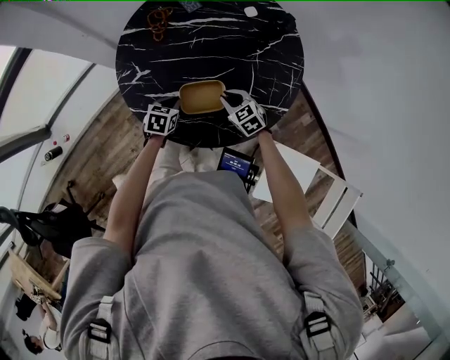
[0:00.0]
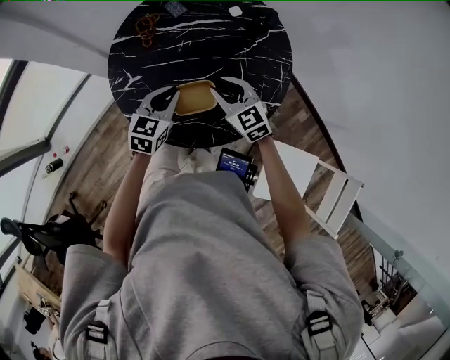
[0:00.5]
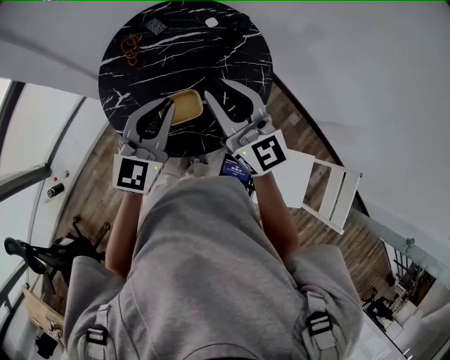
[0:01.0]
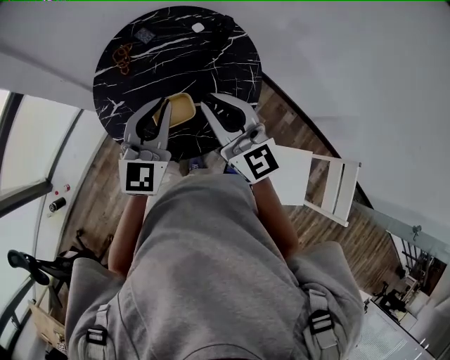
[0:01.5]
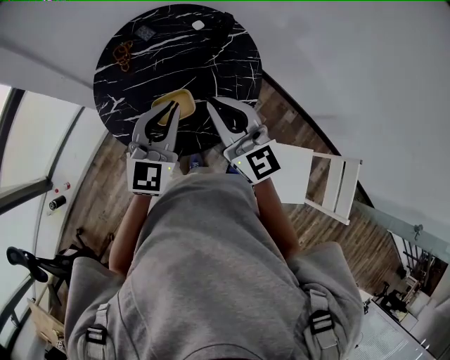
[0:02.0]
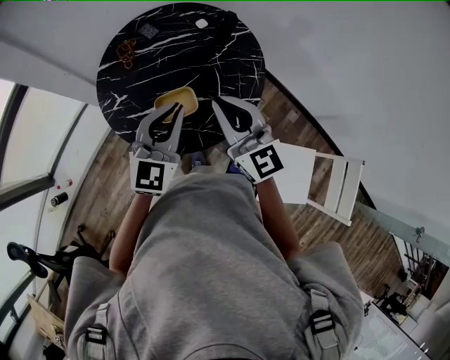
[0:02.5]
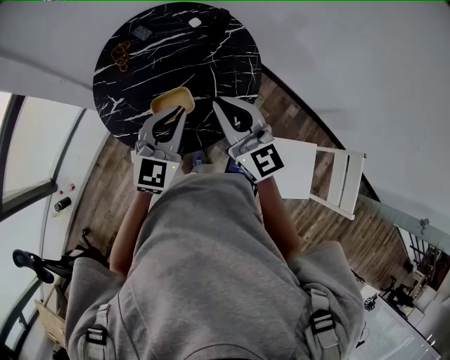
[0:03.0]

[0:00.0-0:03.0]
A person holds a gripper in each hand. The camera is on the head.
0:00.0 to 0:01.5: Both grippers travel together upward, some 40 cm. The left gripper tips its fingers upward by approximately 50 degrees. The right gripper tilts its fingers approximately 50 degrees upward.
0:01.5 to 0:03.0: The left gripper shifts by some 5 cm.

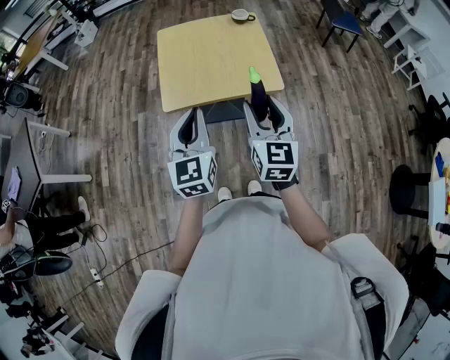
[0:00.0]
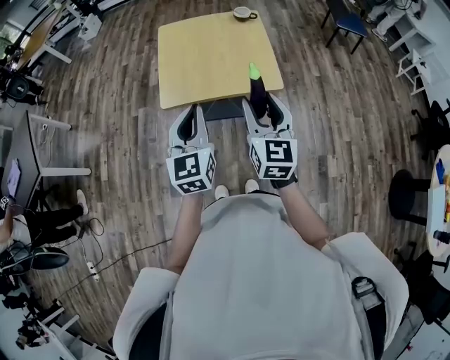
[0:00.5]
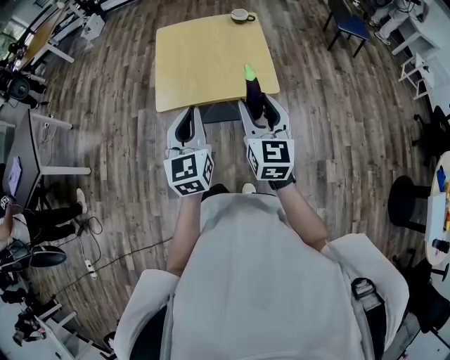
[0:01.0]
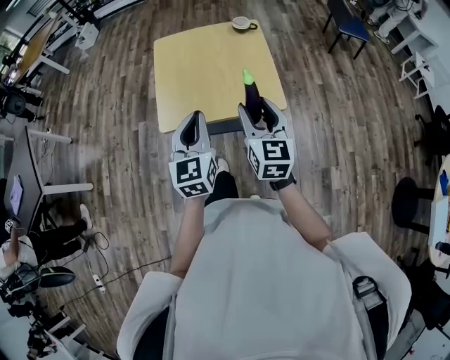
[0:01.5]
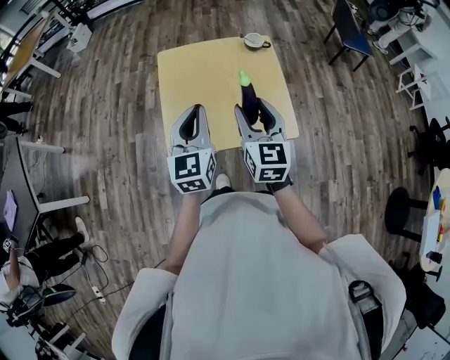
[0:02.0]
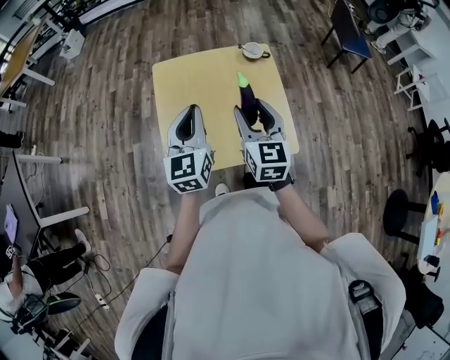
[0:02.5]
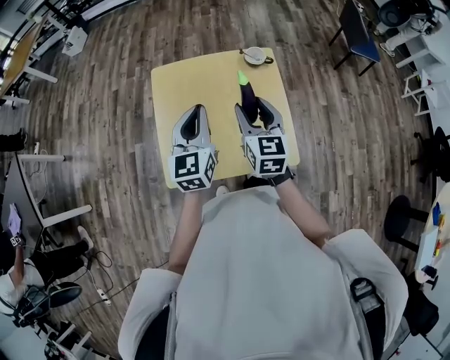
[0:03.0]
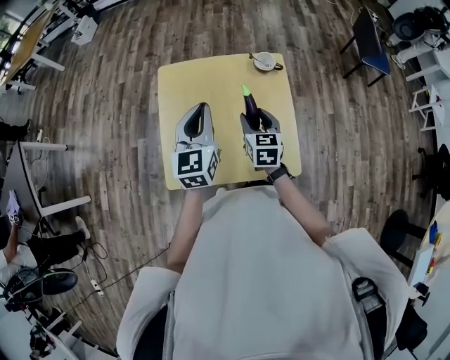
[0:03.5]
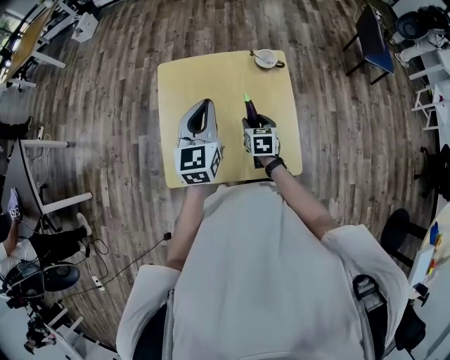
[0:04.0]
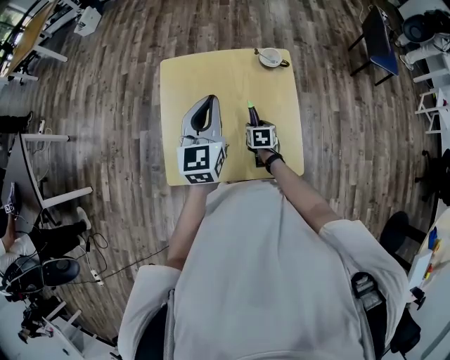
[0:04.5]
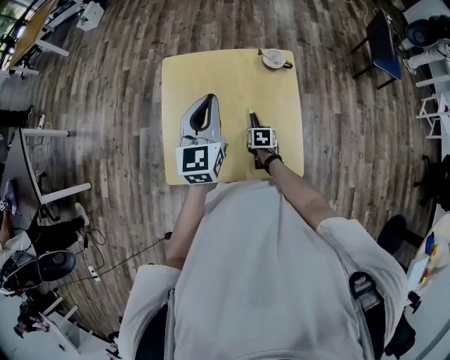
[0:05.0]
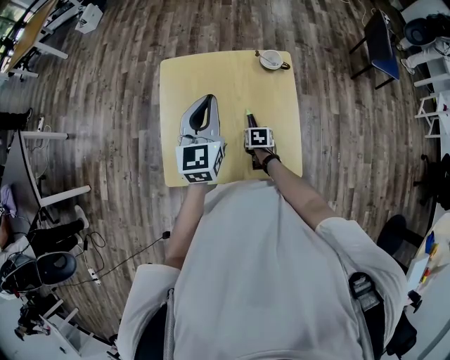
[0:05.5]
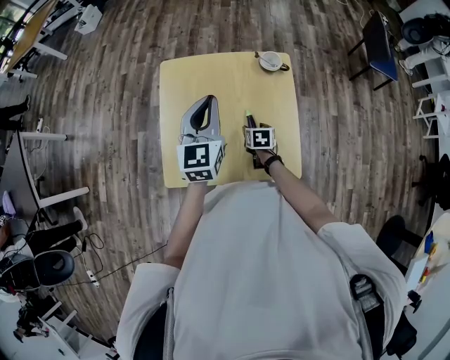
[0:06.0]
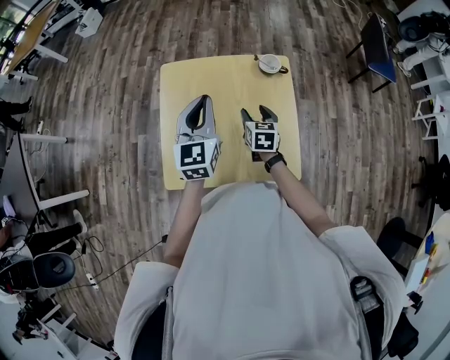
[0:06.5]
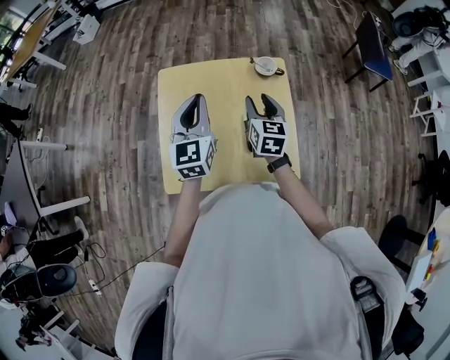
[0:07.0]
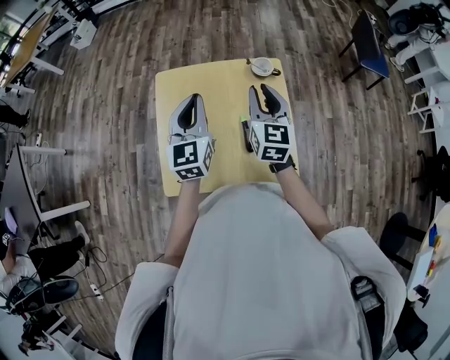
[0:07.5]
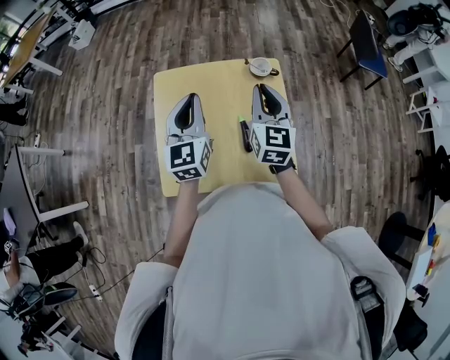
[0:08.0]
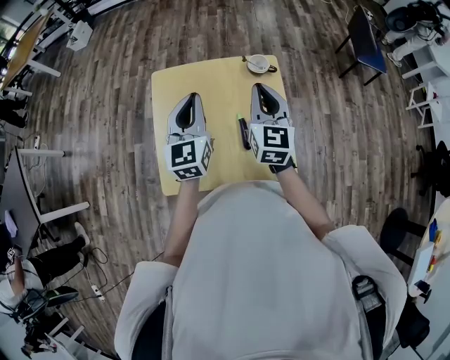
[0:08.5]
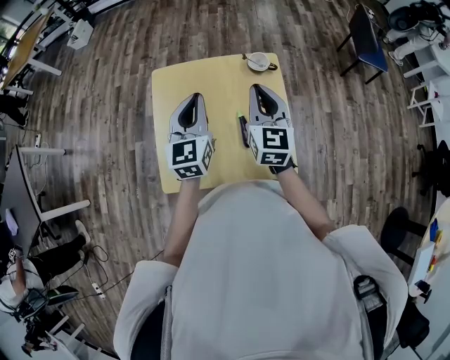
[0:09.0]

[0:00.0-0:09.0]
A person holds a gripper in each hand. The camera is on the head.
0:00.0 to 0:02.0: Both grippers move forward, roughly 25 cm.
0:02.0 to 0:04.5: The right gripper heads downward and forward, covering about 40 cm, and tilts its fingers some 50 degrees downward; the left gripper goes approximately 20 cm forward.
0:04.5 to 0:07.0: The right gripper heads upward, covering roughly 20 cm, and tilts its fingers roughly 30 degrees upward.
0:07.0 to 0:09.0: The right gripper moves upward, approximately 10 cm, and closes its fingers.

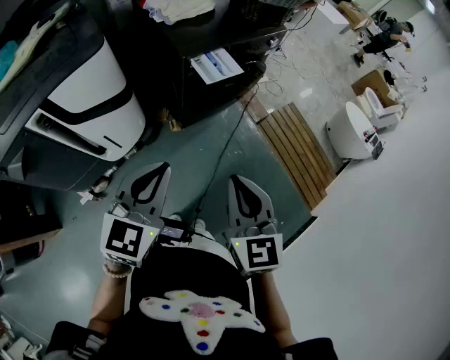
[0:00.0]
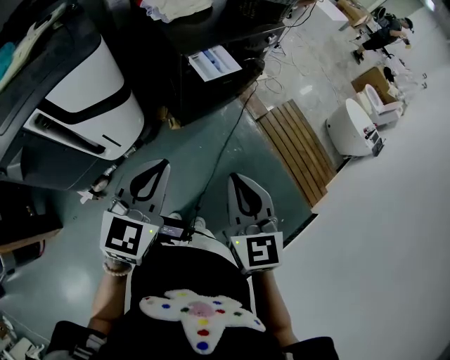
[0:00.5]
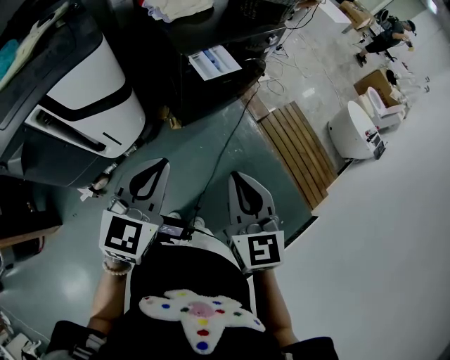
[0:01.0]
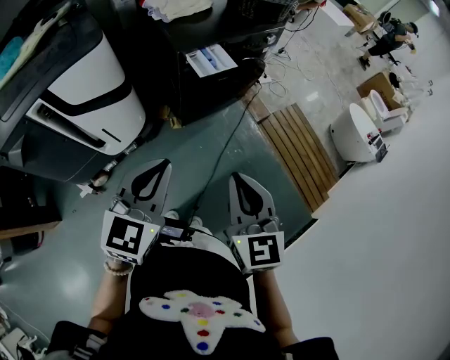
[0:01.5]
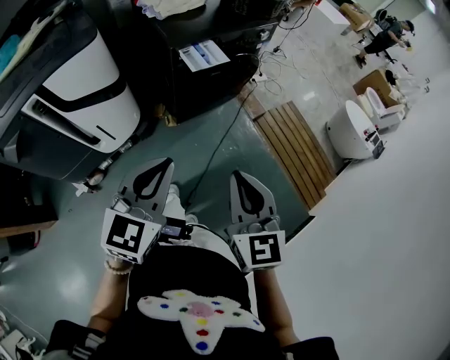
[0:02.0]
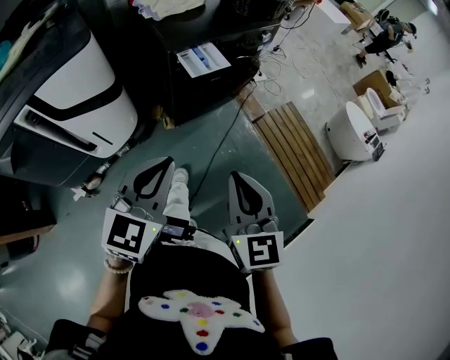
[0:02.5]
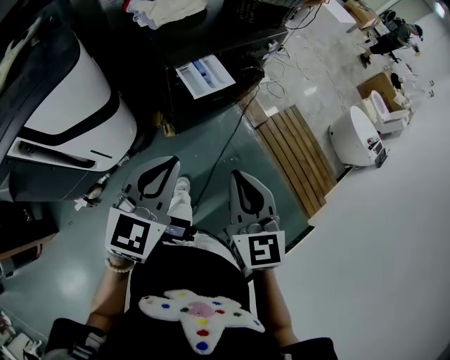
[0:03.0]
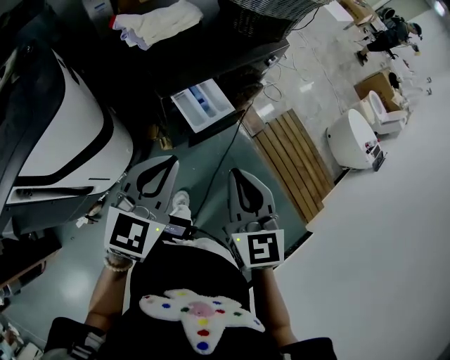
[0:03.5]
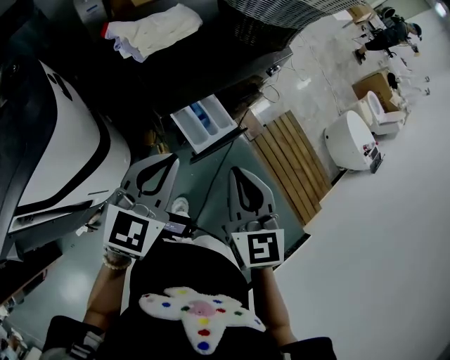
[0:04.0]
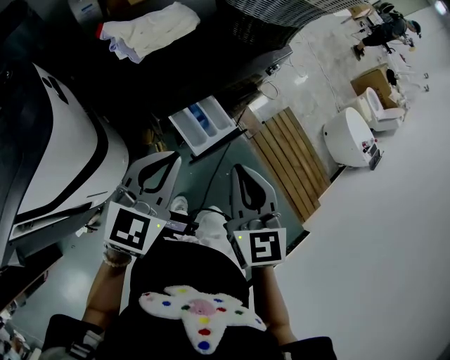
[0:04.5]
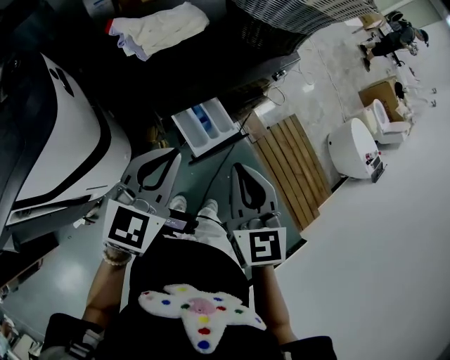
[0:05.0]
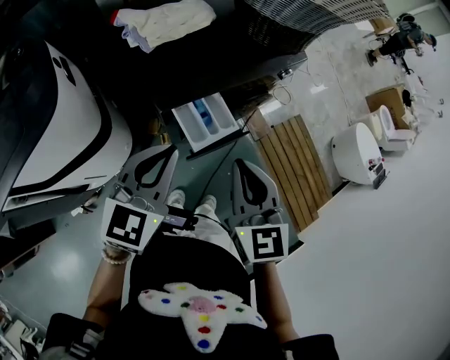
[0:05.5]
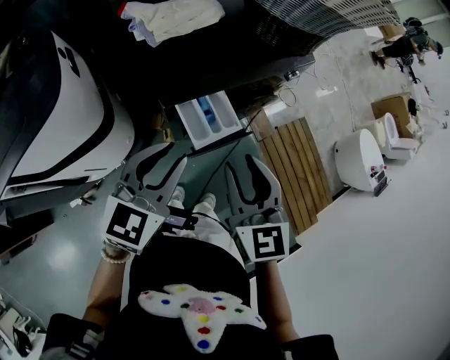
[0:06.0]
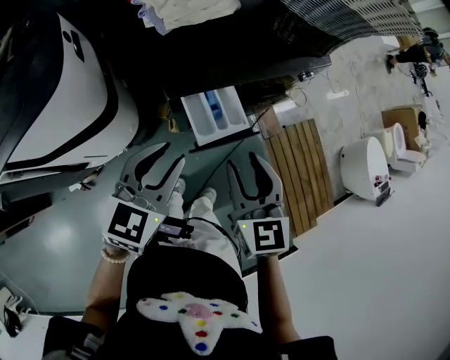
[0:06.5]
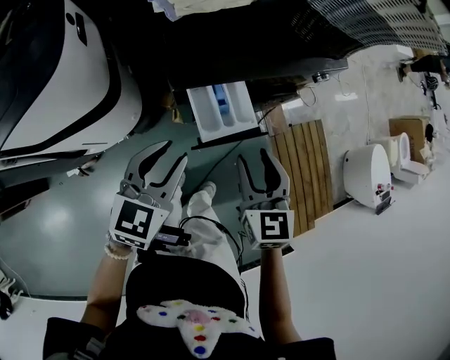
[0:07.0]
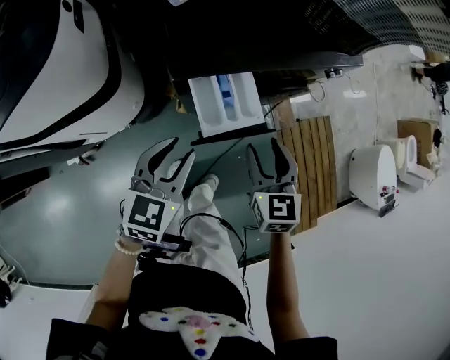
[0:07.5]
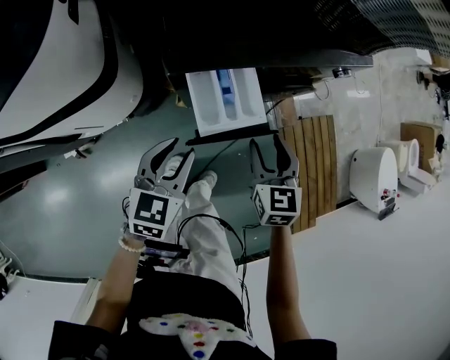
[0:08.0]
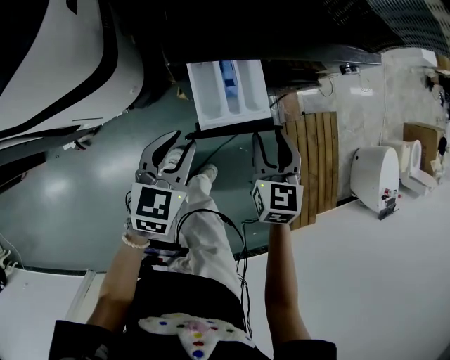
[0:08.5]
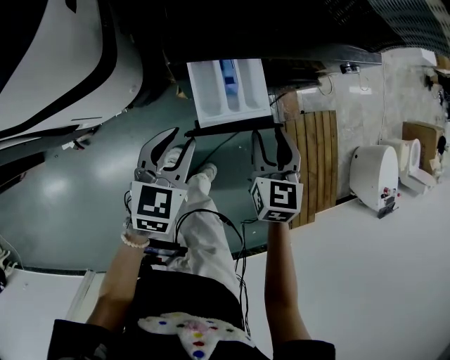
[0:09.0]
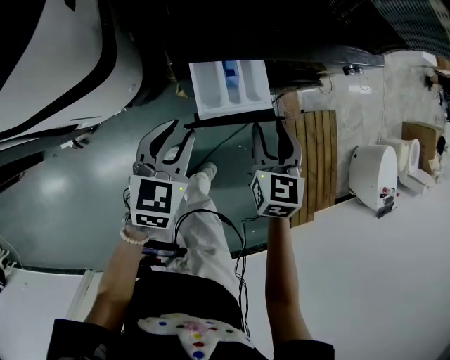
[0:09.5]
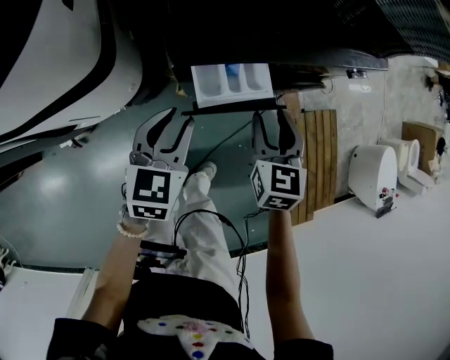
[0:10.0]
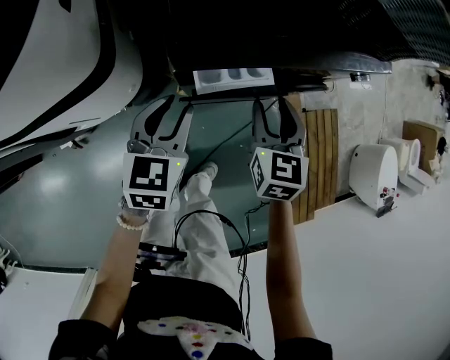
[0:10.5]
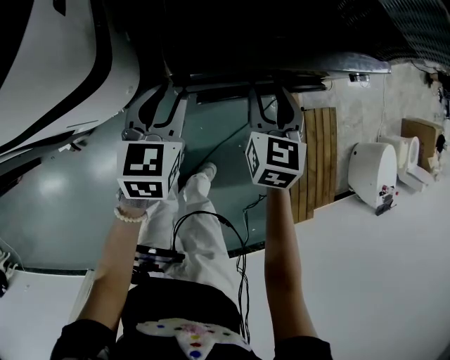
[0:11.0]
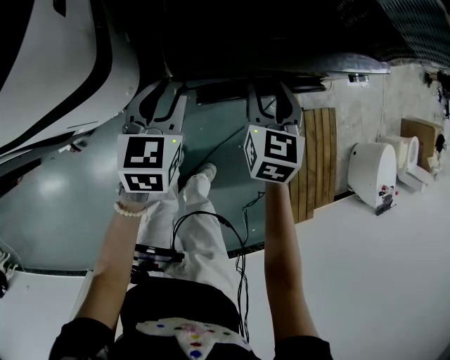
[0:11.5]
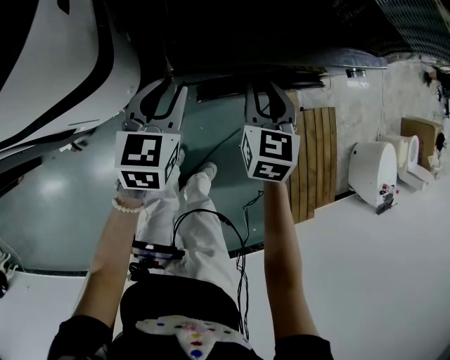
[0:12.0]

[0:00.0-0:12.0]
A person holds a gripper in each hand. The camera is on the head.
0:00.0 to 0:02.0: The two grippers go roughly 10 cm to the right.
0:02.0 to 0:04.0: Both grippers move forward, approximately 35 cm.
0:04.0 to 0:06.0: The left gripper opens its fingers, while the right gripper opens up.
0:06.0 to 0:08.0: Both grippers move downward, approximately 20 cm. The left gripper turns by roughly 30 degrees.
0:08.0 to 0:10.0: Both grippers move forward, some 5 cm.
0:10.0 to 0:12.0: Both grippers move forward, some 5 cm.

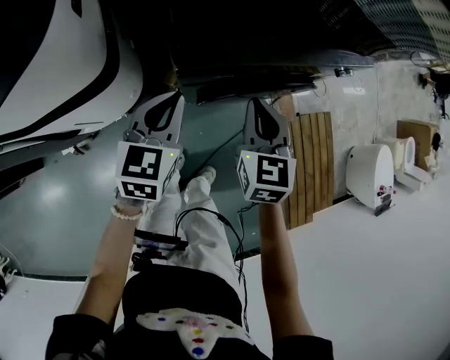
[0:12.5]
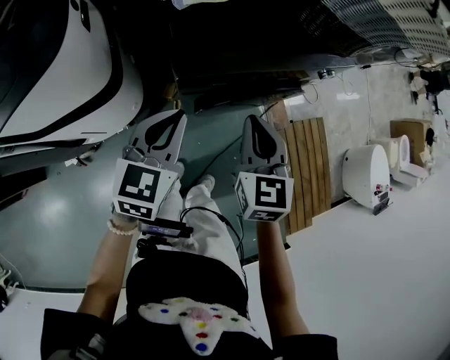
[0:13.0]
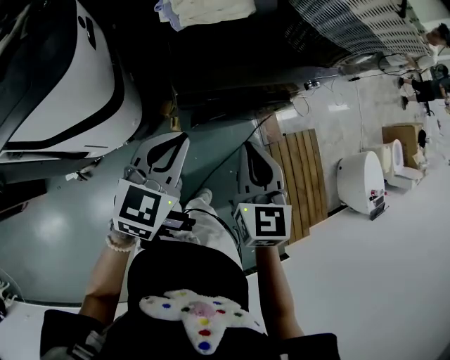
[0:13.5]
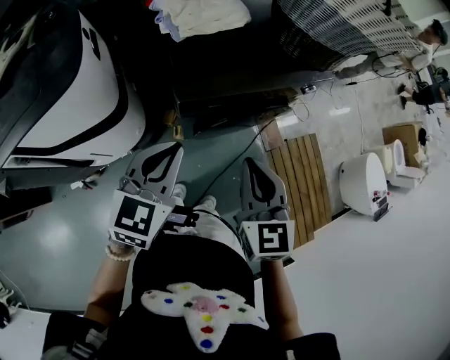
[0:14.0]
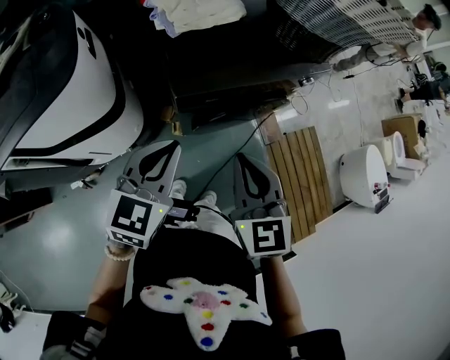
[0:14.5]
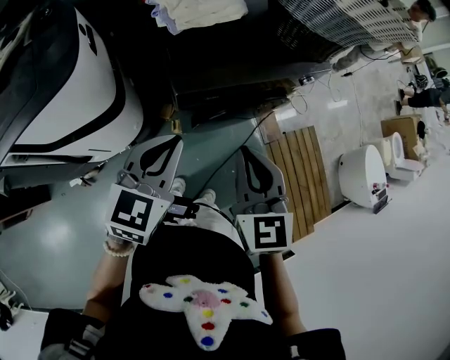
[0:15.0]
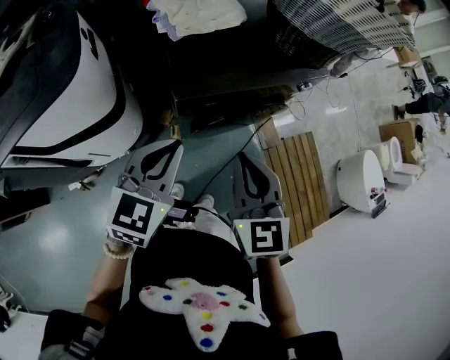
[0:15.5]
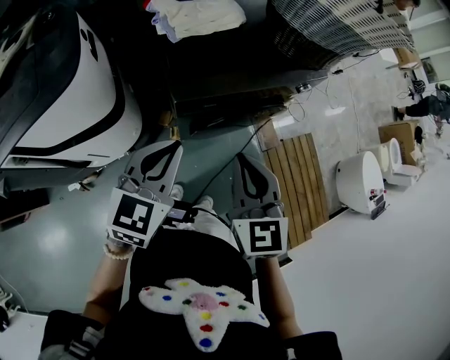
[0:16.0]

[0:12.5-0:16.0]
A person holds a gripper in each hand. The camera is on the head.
0:12.5 to 0:14.5: The two grippers go approximately 20 cm upward and backward.
0:14.5 to 0:16.0: Neither gripper changes place.
